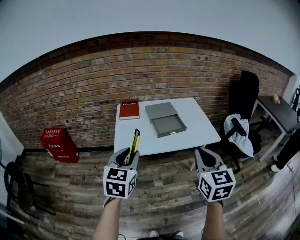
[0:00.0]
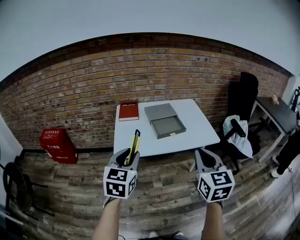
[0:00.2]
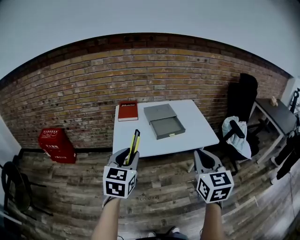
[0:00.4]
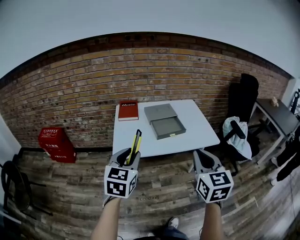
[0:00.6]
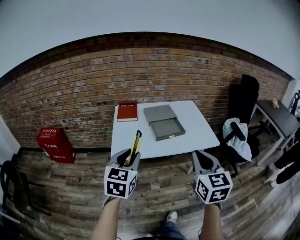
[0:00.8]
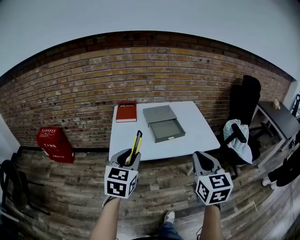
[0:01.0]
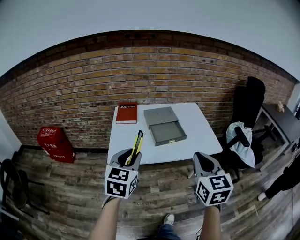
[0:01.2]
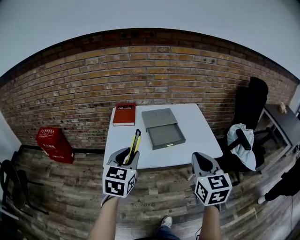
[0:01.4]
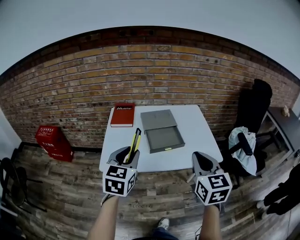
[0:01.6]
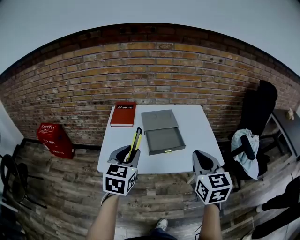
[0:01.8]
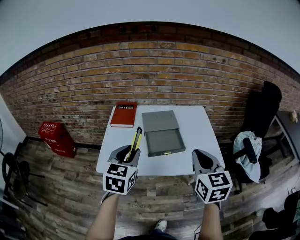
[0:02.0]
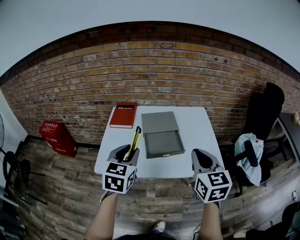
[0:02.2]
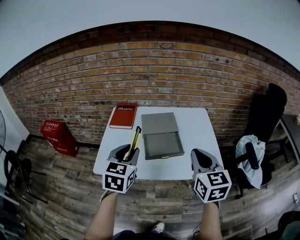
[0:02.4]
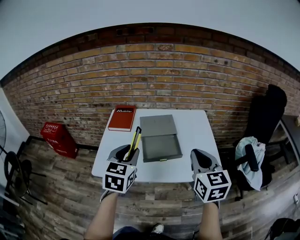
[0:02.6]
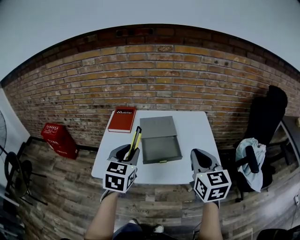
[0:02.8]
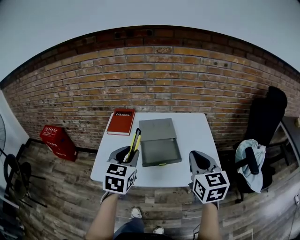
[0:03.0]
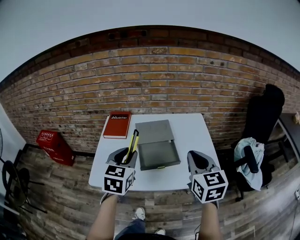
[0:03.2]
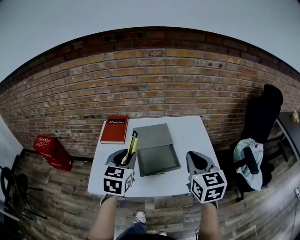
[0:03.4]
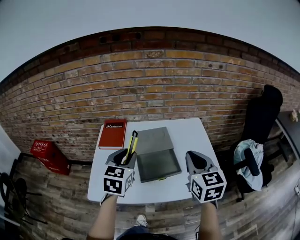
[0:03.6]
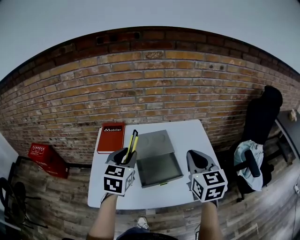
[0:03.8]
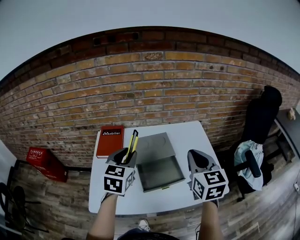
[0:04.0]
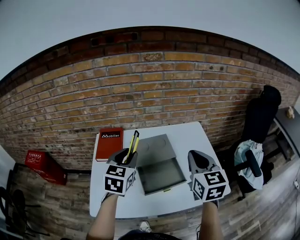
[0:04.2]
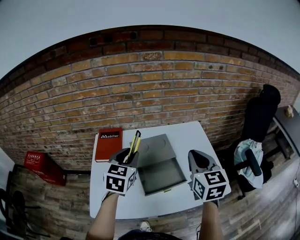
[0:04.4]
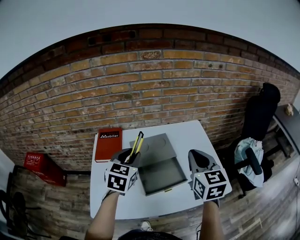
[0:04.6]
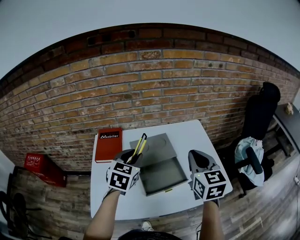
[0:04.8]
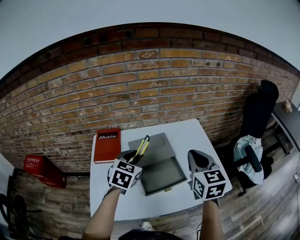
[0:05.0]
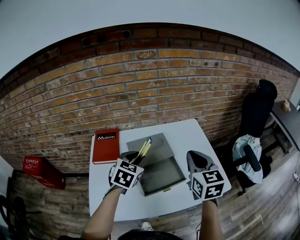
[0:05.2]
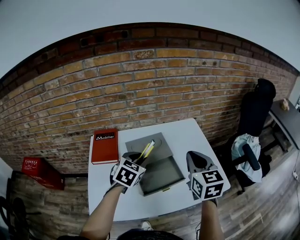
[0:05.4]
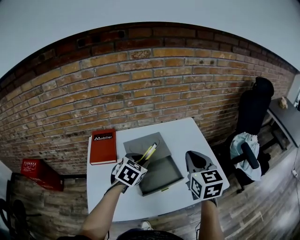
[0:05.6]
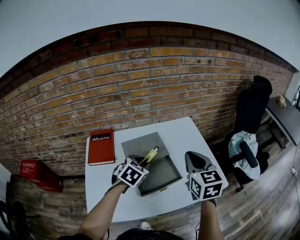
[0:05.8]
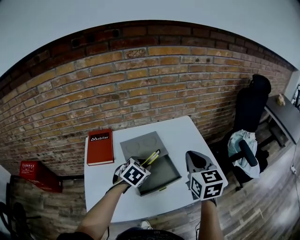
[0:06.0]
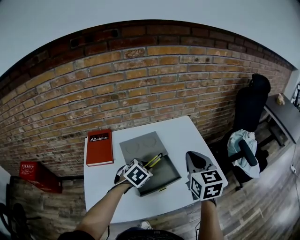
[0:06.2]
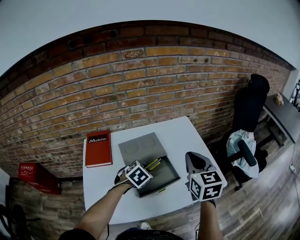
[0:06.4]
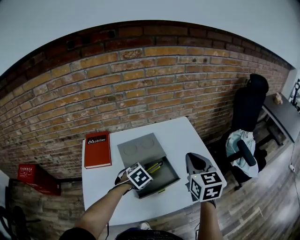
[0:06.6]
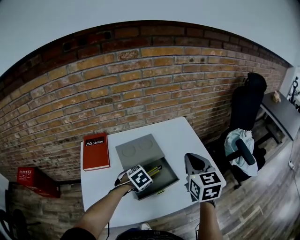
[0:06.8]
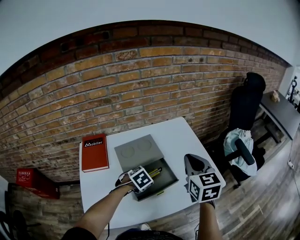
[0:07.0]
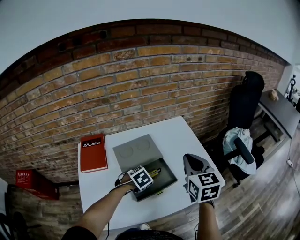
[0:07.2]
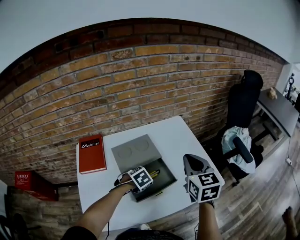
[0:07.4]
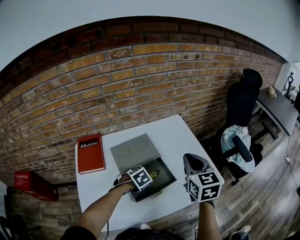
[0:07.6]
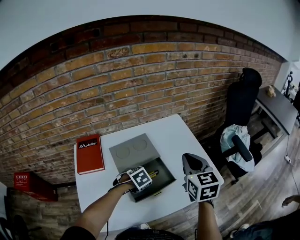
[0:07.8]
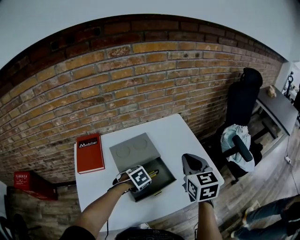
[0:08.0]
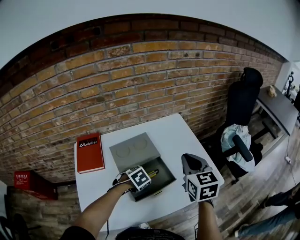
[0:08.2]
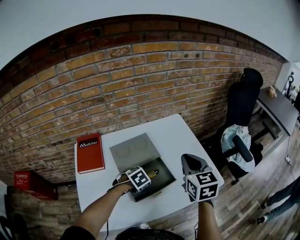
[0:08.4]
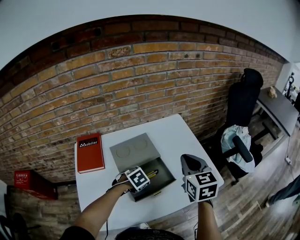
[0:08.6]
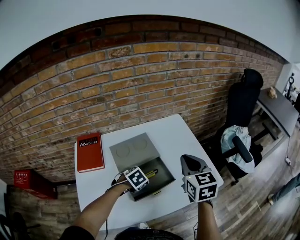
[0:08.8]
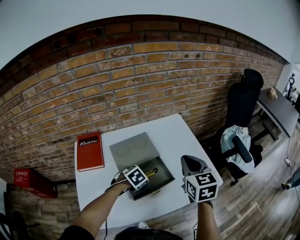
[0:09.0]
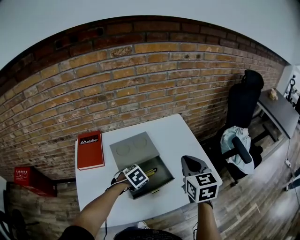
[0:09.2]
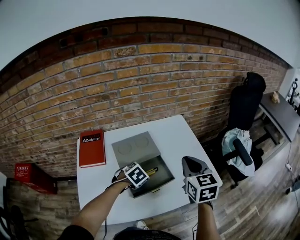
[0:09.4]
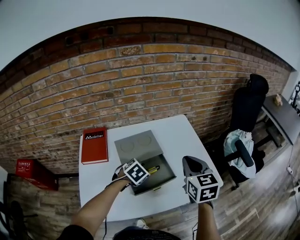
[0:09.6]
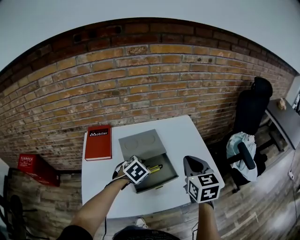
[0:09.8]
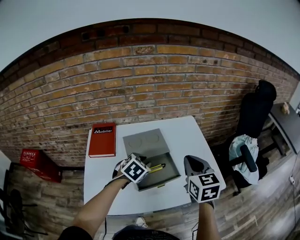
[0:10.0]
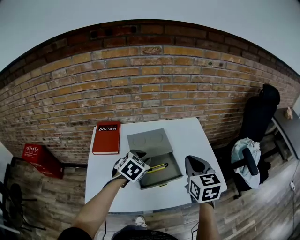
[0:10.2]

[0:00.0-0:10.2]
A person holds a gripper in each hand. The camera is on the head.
0:00.0 to 0:01.4: Both grippers travel together forward, about 10 cm.
0:01.4 to 0:03.0: Both grippers move forward and to the right, approximately 15 cm.
0:03.0 to 0:04.4: Both grippers travel together forward, about 15 cm.
0:04.4 to 0:05.8: The left gripper heads downward and to the right, covering roughly 15 cm, and rotates approximately 30 degrees.
0:05.8 to 0:07.2: The left gripper goes about 10 cm downward, and rotates some 30 degrees.
0:07.2 to 0:08.8: The grippers make only small movements.
0:08.8 to 0:10.2: The left gripper travels upward by approximately 15 cm, and turns by some 30 degrees.

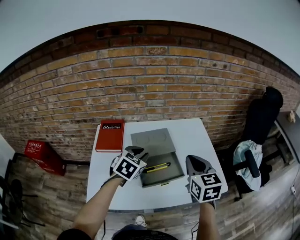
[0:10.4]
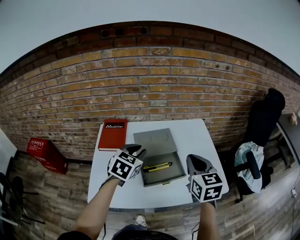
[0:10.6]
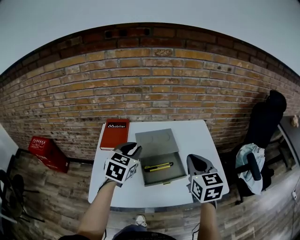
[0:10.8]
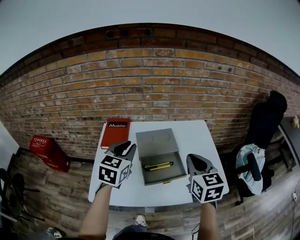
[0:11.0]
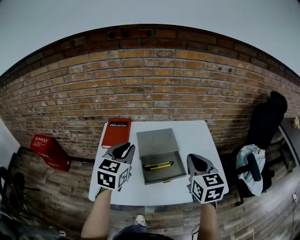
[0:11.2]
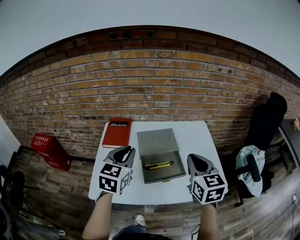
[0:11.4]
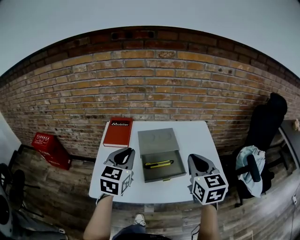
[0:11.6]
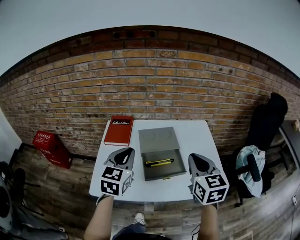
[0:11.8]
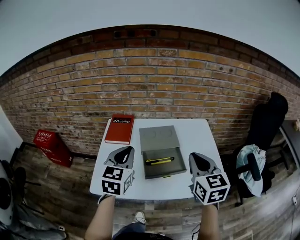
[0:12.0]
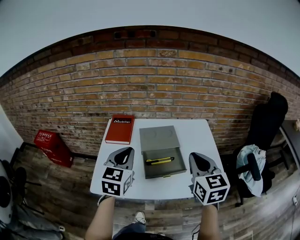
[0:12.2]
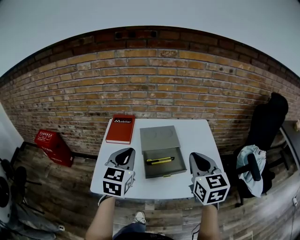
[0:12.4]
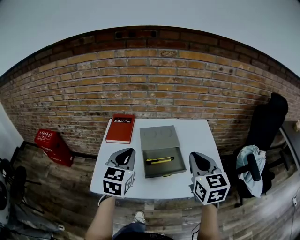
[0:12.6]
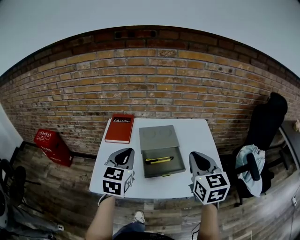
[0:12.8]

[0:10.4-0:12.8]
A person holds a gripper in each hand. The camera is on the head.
0:10.4 to 0:11.6: The left gripper heads upward, backward and to the left, covering some 15 cm, and swivels some 30 degrees; the right gripper shifts by approximately 5 cm.
0:11.6 to 0:12.8: The grippers move only a little.

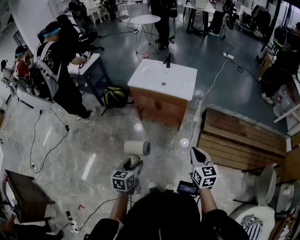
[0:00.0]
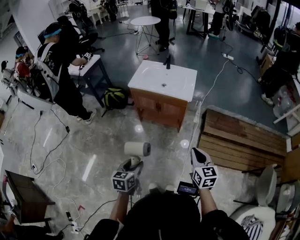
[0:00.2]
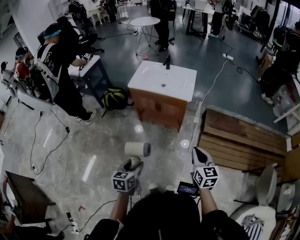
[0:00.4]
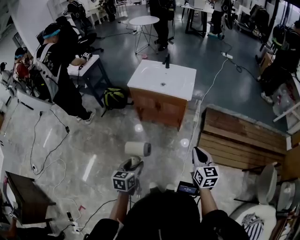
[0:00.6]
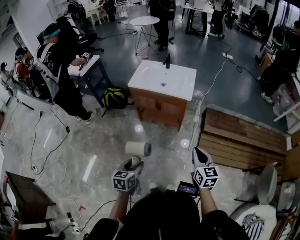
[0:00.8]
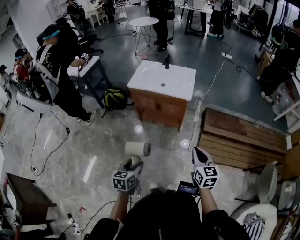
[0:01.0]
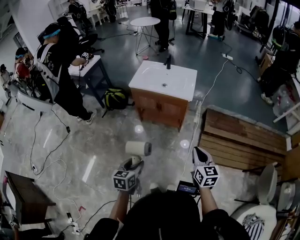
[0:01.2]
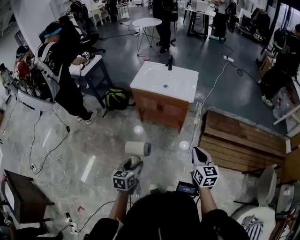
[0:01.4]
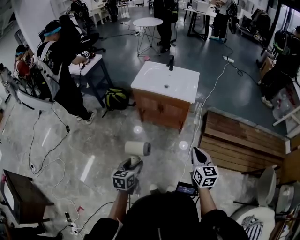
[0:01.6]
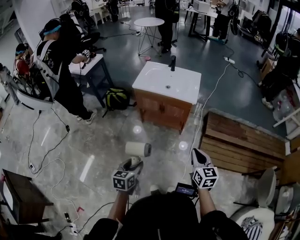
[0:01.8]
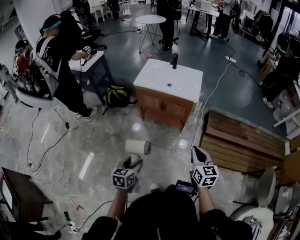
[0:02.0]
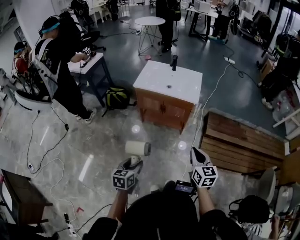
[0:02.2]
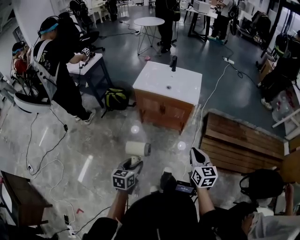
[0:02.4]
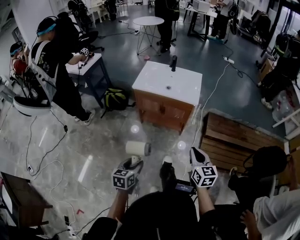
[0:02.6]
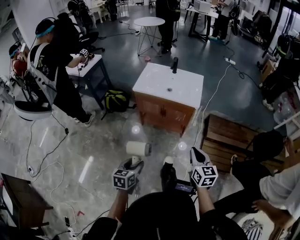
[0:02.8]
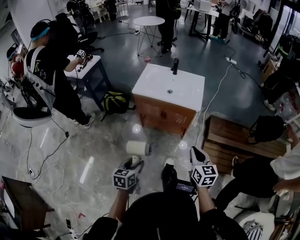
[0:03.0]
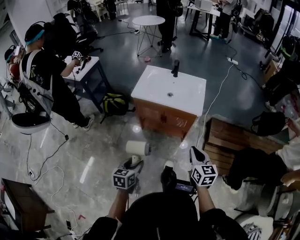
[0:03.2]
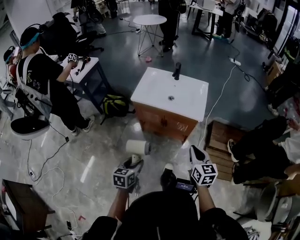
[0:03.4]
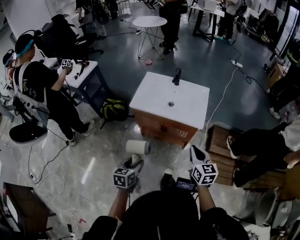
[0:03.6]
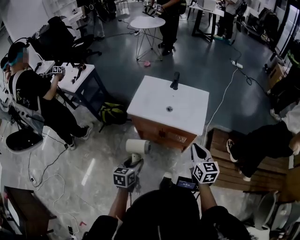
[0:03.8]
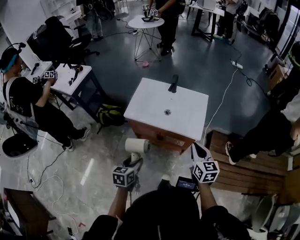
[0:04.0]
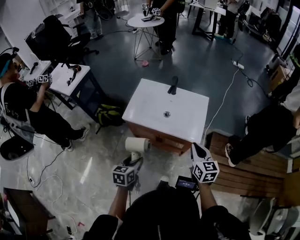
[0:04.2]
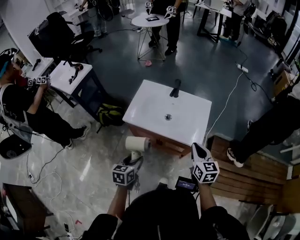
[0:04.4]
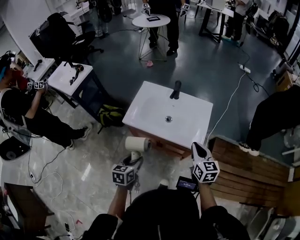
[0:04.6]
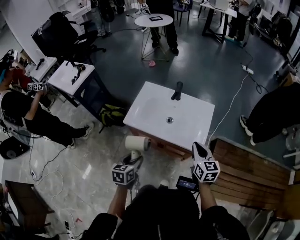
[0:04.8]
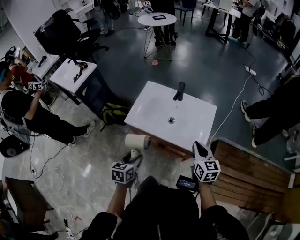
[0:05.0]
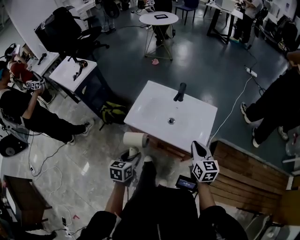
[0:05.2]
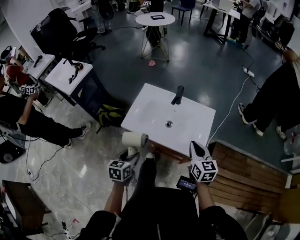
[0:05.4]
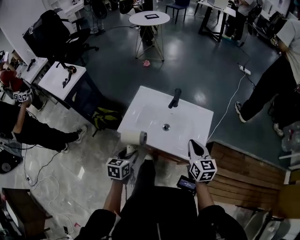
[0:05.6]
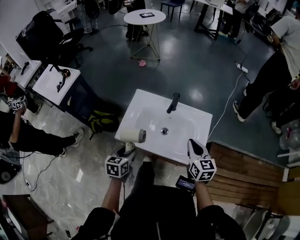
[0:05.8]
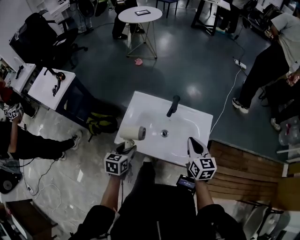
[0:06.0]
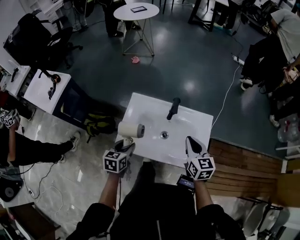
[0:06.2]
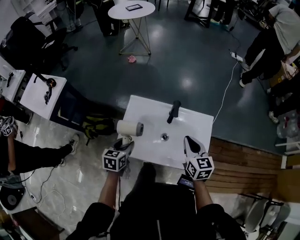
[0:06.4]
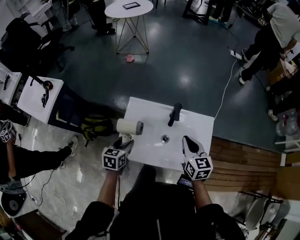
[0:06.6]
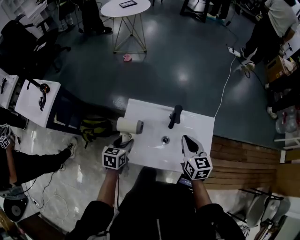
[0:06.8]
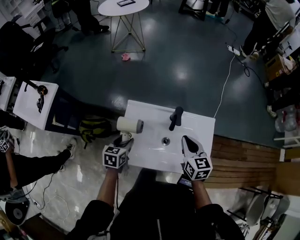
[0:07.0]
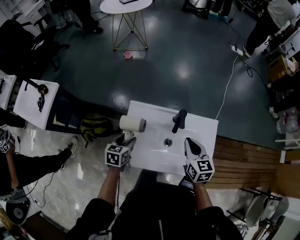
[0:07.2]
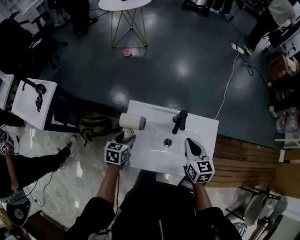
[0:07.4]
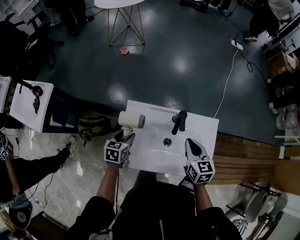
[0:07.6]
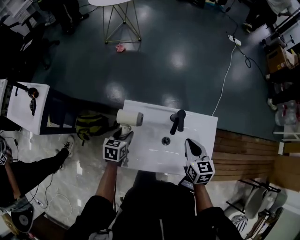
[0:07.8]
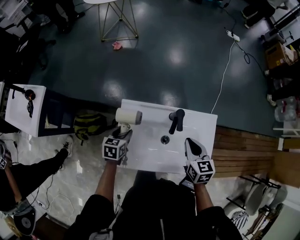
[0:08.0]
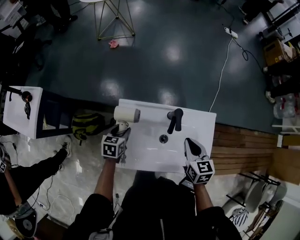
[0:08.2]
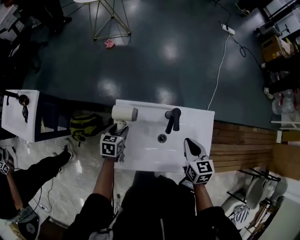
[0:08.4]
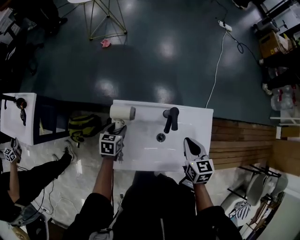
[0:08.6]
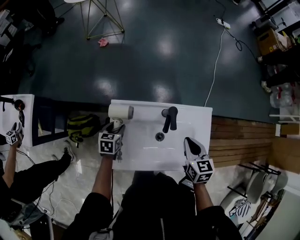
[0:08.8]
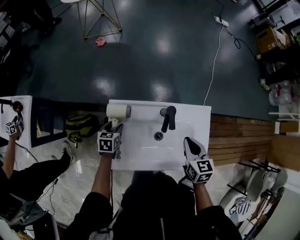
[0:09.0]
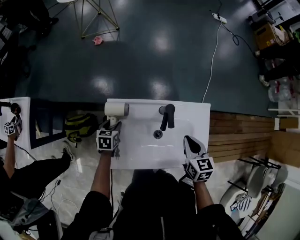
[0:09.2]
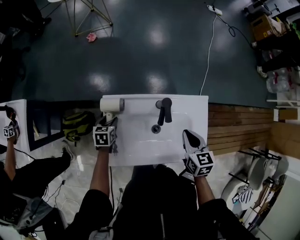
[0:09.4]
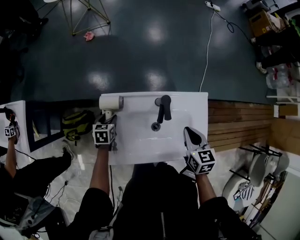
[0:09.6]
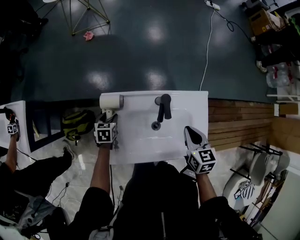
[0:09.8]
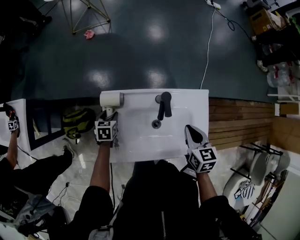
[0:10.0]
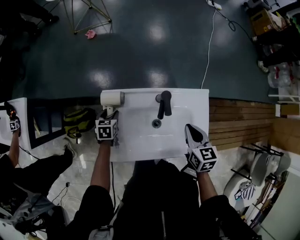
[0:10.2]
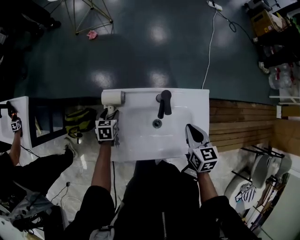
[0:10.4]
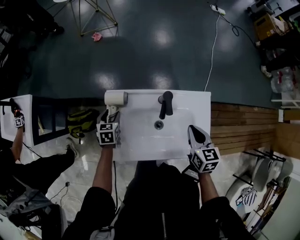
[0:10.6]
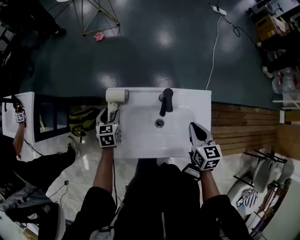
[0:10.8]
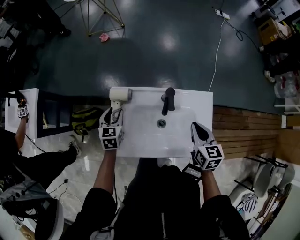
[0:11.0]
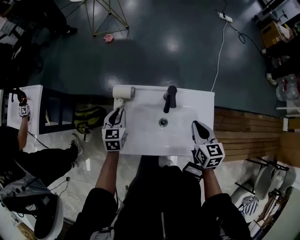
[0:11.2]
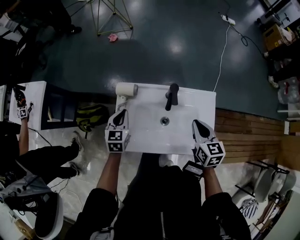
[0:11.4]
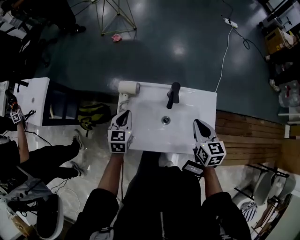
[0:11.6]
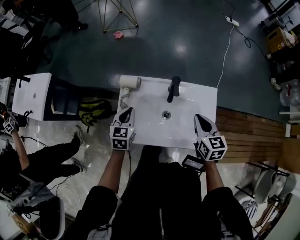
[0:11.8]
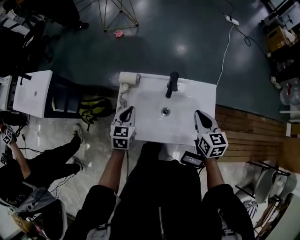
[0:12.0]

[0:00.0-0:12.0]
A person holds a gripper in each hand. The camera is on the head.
0:00.0 to 0:01.6: The grippers stay close to where they were, moving slightly.
0:01.6 to 0:03.0: The left gripper moves forward, roughly 10 cm; the right gripper heads forward and to the left, covering about 10 cm.
0:03.0 to 0:04.4: Both grippers move forward, roughly 30 cm.
0:04.4 to 0:06.0: The two grippers go roughly 20 cm forward.
0:06.0 to 0:07.6: The right gripper moves forward and to the left, some 15 cm. The left gripper is displaced forward by about 20 cm.
0:07.6 to 0:09.0: The left gripper heads downward and forward, covering approximately 10 cm.
0:09.0 to 0:10.4: There are only small adjustments of the grippers.
0:10.4 to 0:12.0: The left gripper travels upward and backward by about 20 cm, turns by about 20 degrees, and closes up. Meanwhile the right gripper changes place by about 5 cm.
